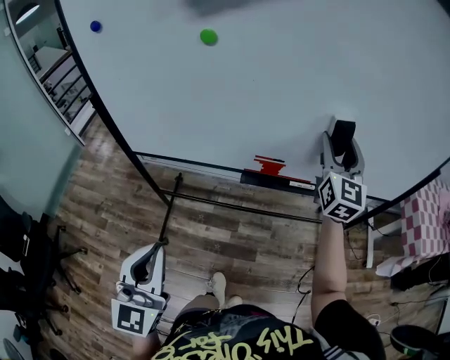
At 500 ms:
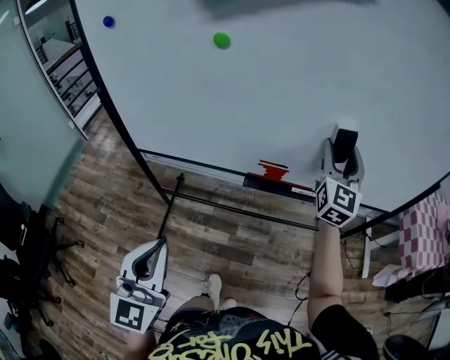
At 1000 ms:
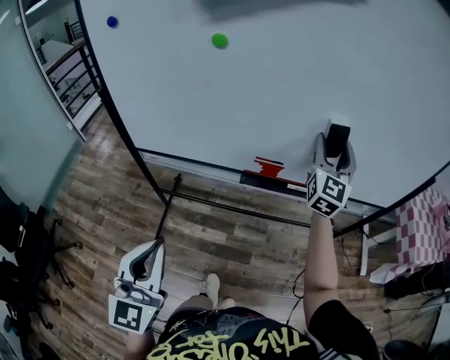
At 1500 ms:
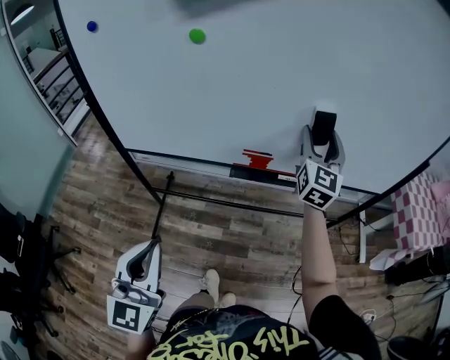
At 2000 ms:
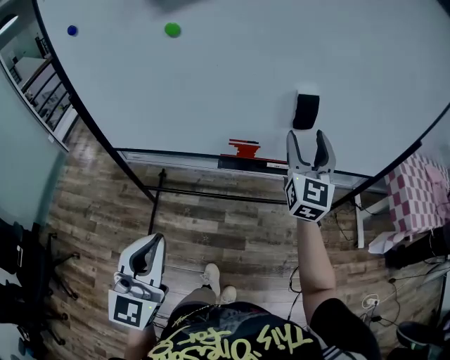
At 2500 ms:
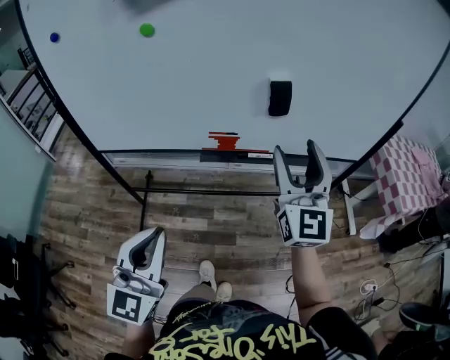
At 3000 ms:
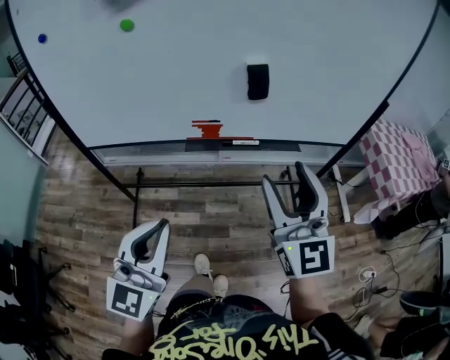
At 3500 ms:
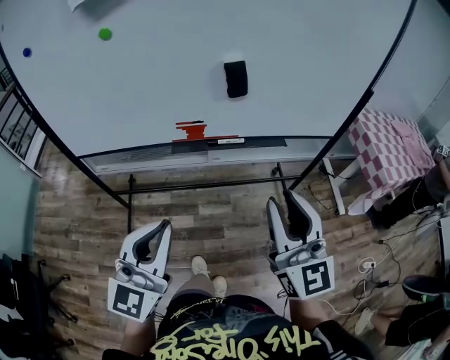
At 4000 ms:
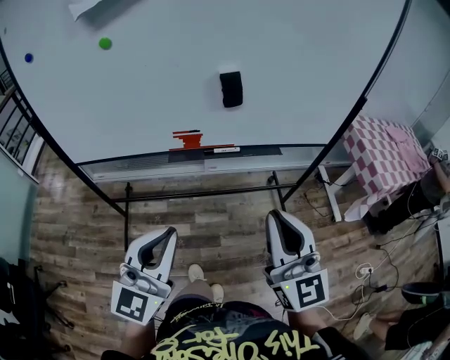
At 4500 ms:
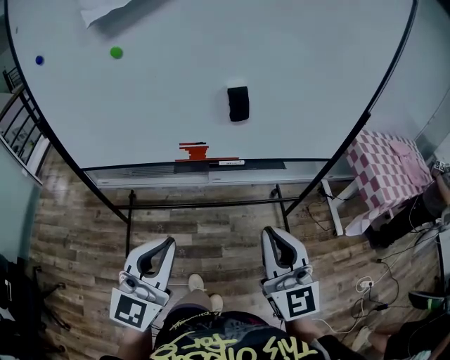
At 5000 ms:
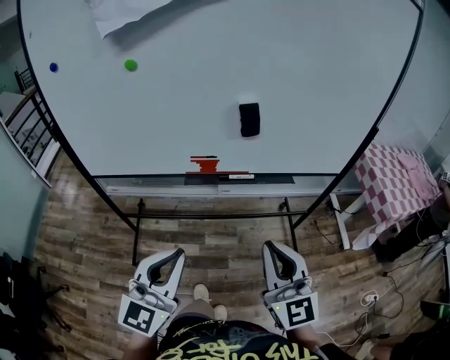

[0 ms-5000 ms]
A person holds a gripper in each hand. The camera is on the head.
0 ms to 2500 ms: The right gripper is displaced backward by about 15 cm, while the left gripper goes approximately 10 cm to the right.
2500 ms to 5000 ms: The right gripper moves backward, approximately 15 cm, and closes up. The left gripper moves to the right, roughly 10 cm.

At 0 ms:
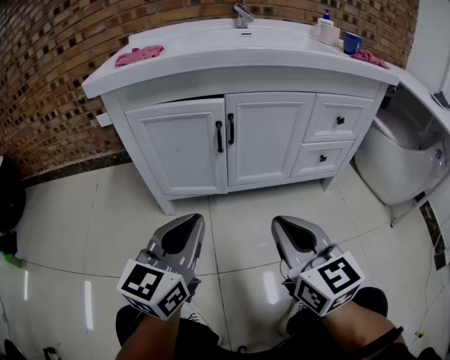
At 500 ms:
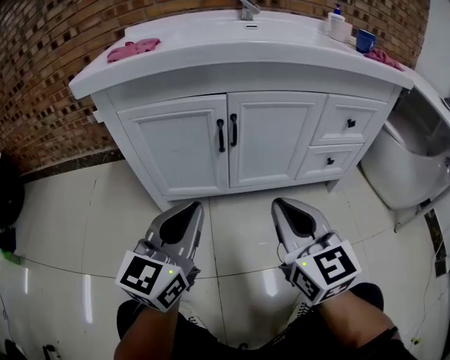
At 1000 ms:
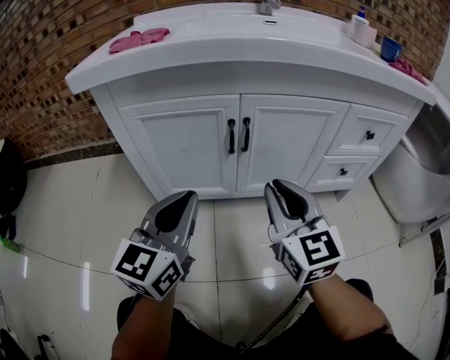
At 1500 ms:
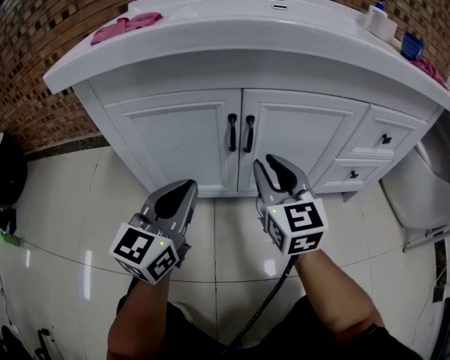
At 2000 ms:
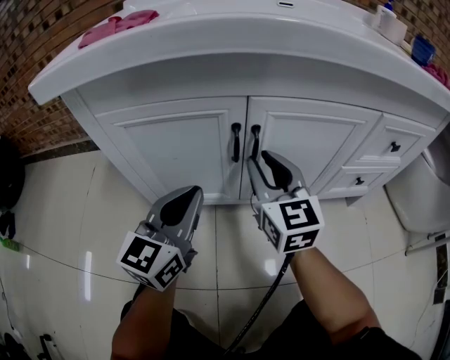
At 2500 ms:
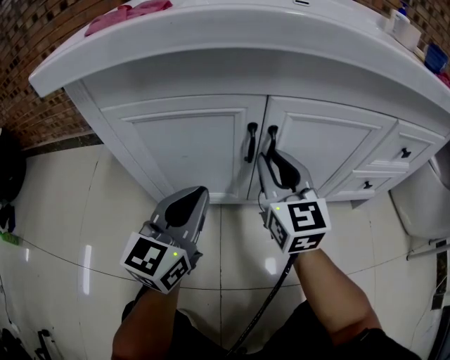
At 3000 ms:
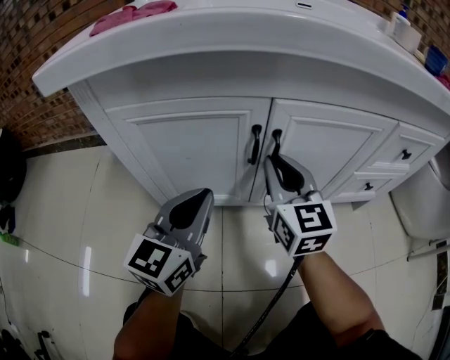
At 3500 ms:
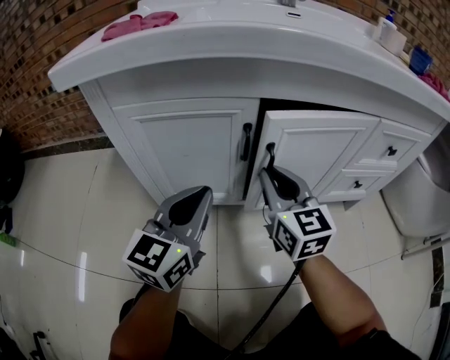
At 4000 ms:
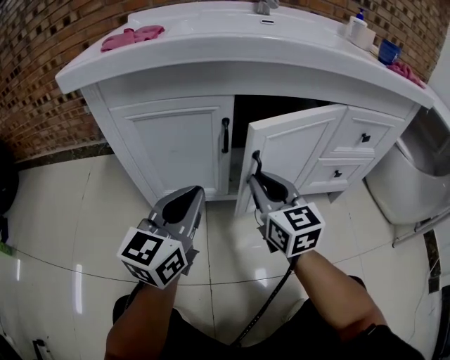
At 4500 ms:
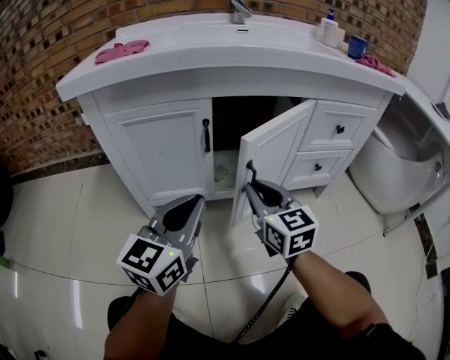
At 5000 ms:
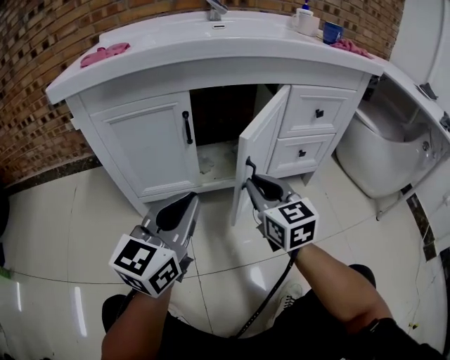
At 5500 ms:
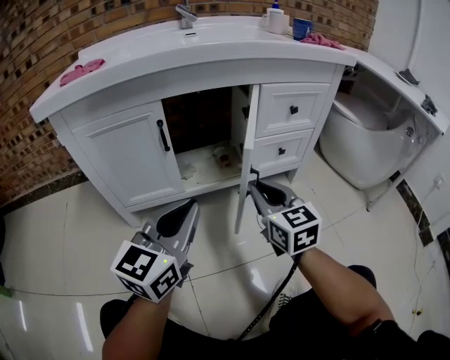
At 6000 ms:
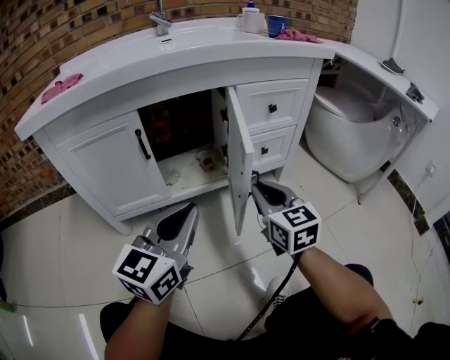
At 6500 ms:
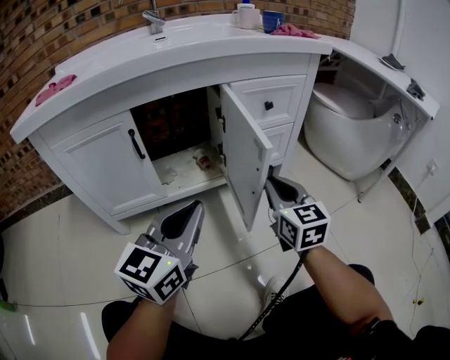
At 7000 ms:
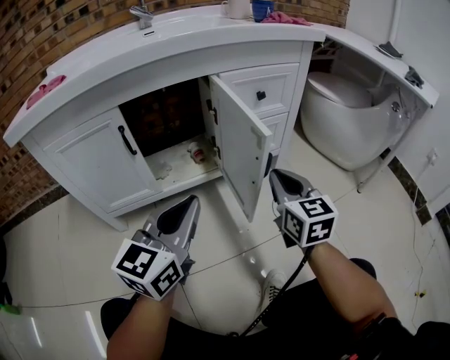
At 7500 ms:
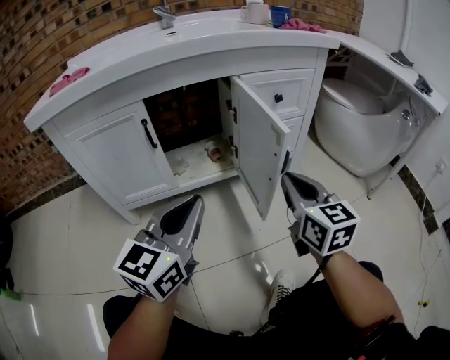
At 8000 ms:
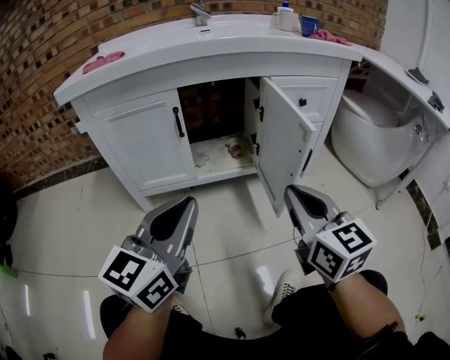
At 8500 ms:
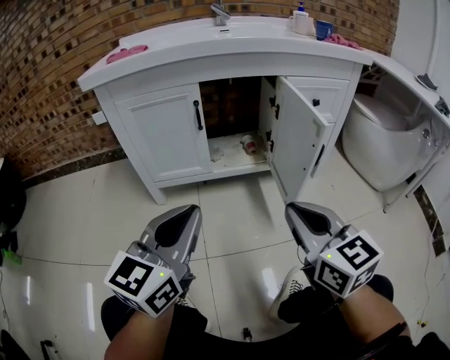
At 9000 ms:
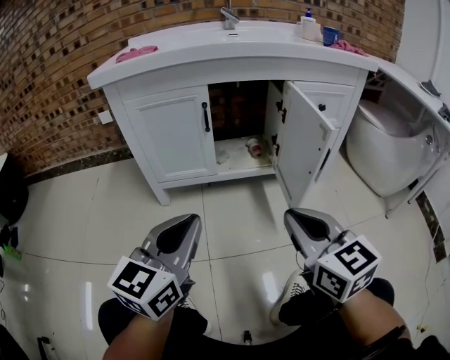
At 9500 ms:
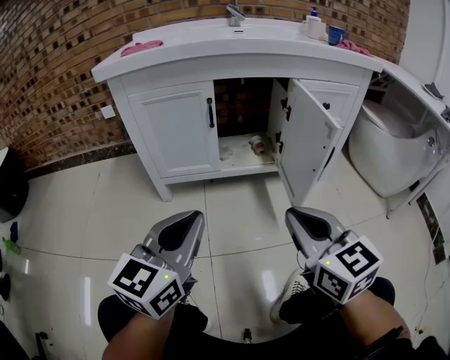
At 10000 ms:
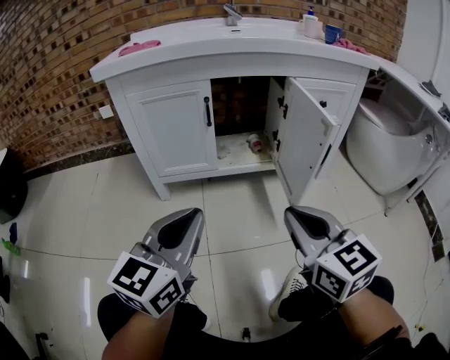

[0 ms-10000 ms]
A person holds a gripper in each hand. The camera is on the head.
0 ms to 2000 ms: Both grippers travel together forward, some 25 cm. The right gripper opens.
2000 ms to 4000 ms: The grippers both shift backward by roughly 5 cm.
4000 ms to 6000 ms: The two grippers go about 20 cm to the right and backward.
6000 ms to 8000 ms: The left gripper moves backward, roughly 10 cm; the right gripper shifts about 15 cm backward and upward.
8000 ms to 10000 ms: The left gripper travels backward by about 5 cm, while the right gripper moves backward and to the left, about 10 cm.

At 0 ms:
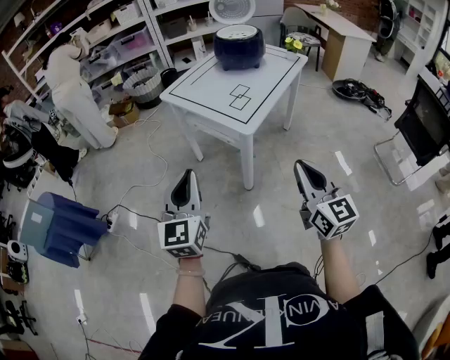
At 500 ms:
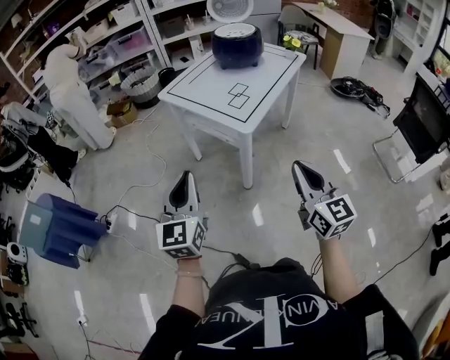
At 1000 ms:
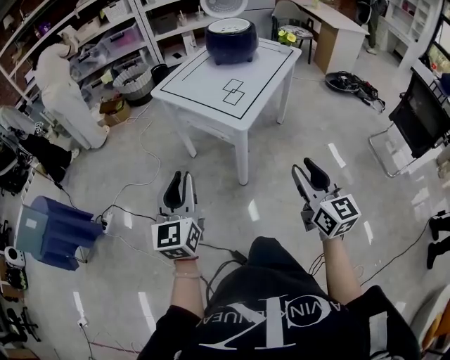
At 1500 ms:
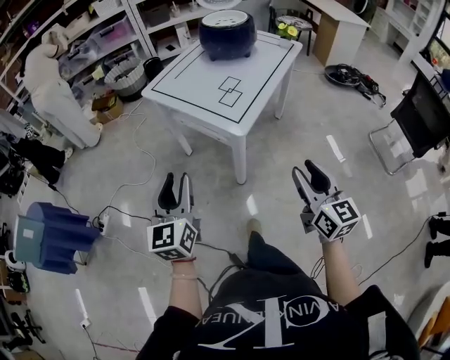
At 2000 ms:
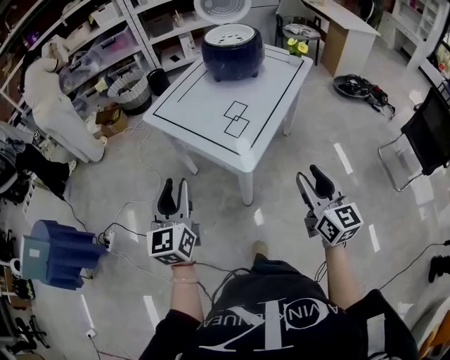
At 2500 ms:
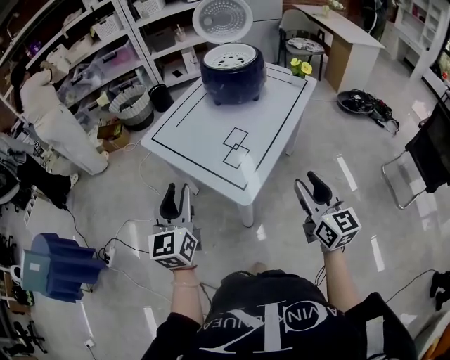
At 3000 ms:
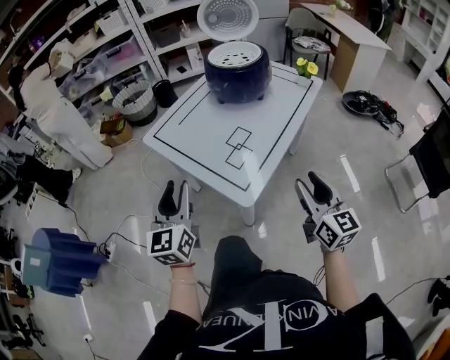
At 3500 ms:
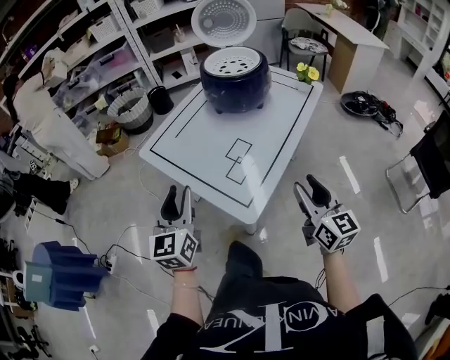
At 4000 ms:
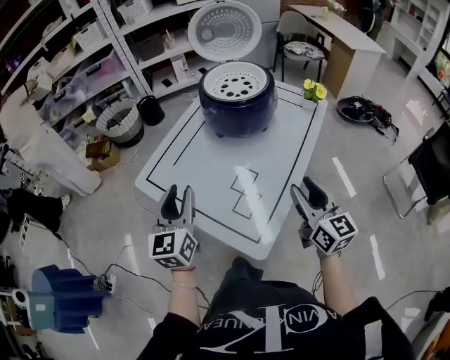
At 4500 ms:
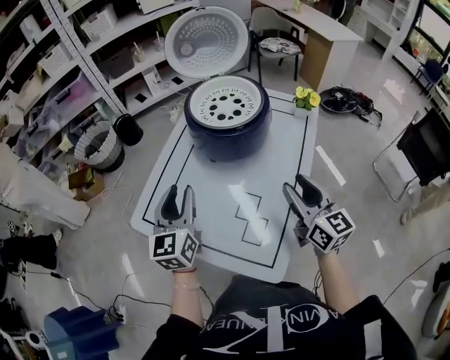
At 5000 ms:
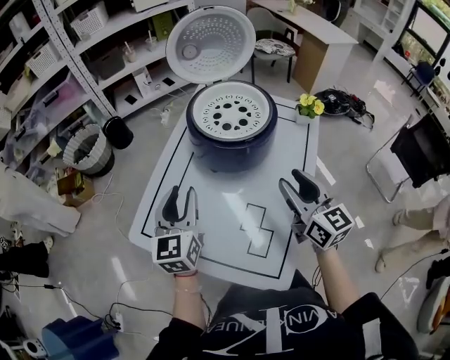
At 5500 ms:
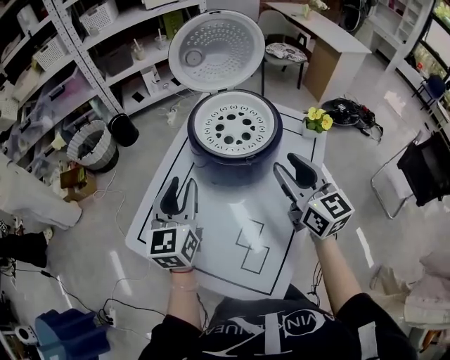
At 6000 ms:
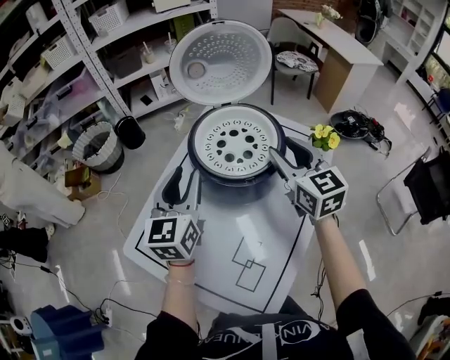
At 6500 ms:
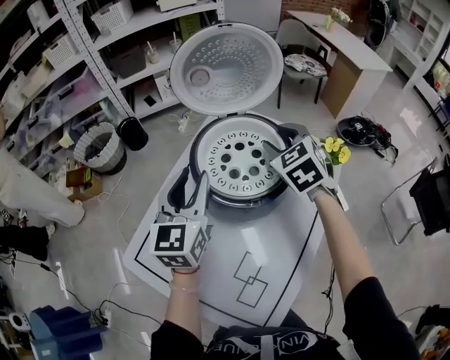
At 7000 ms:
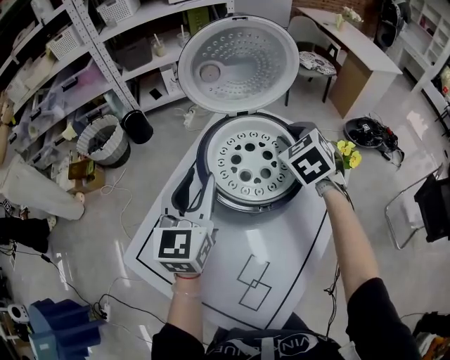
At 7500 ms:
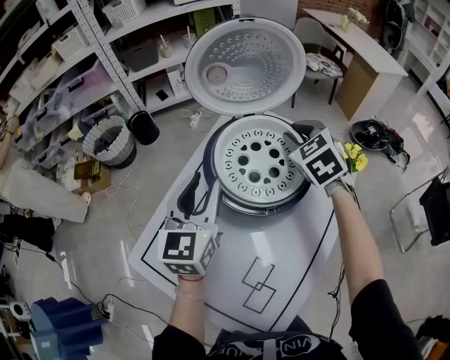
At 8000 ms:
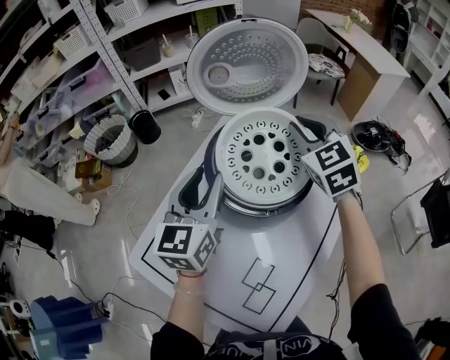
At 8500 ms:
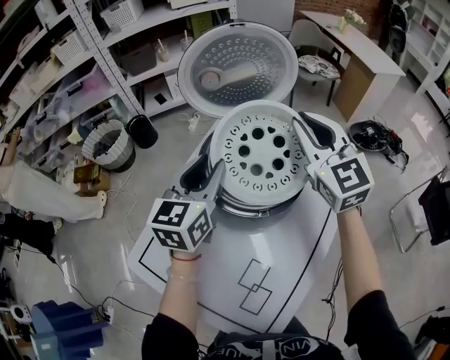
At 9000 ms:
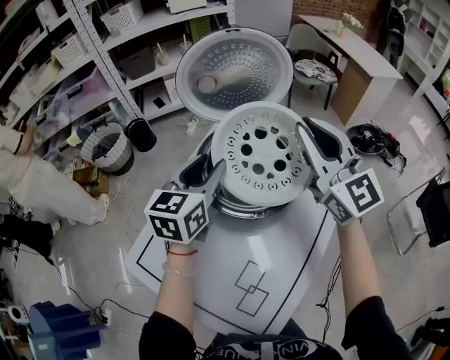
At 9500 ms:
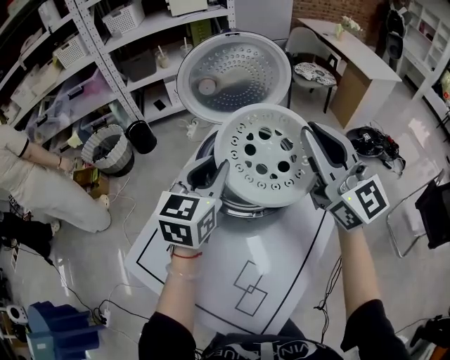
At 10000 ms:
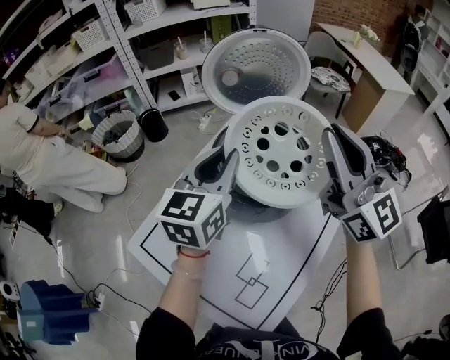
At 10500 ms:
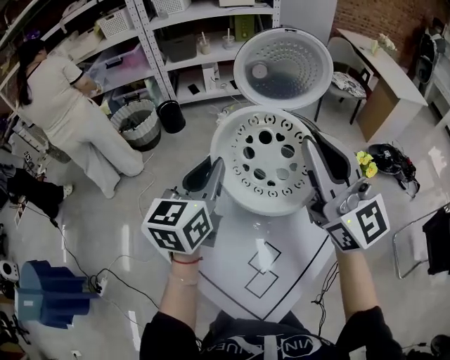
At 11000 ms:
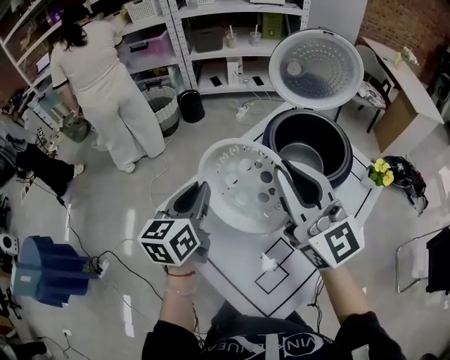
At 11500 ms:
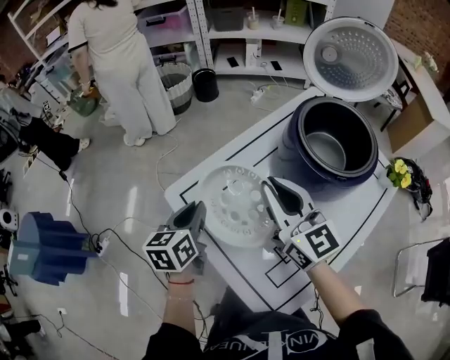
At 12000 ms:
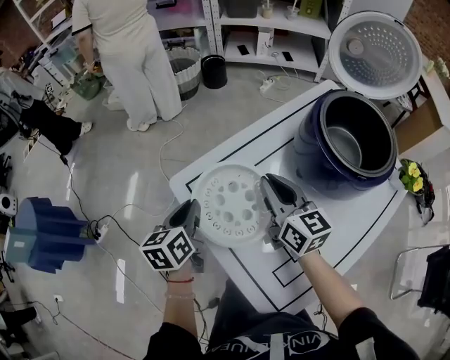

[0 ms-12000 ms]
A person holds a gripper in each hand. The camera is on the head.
0 ms to 2000 ms: The grippers both shift forward by about 20 cm. The left gripper opens up; the right gripper opens.
2000 ms to 4000 ms: Both grippers travel together forward, roughly 30 cm.
4000 ms to 6000 ms: Both grippers move forward, about 30 cm.
6000 ms to 8000 ms: The left gripper ends up approximately 5 cm from where it was. The right gripper heads forward, covering about 10 cm, rotates some 30 degrees, and closes.
8000 ms to 10000 ms: The right gripper shifts approximately 20 cm upward and backward, and points its fingers roughly 40 degrees further upward; the left gripper is displaced upward by some 5 cm.
10000 ms to 12000 ms: The two grippers go roughly 40 cm to the left and downward. The left gripper rotates roughly 50 degrees, while the right gripper swivels approximately 50 degrees.
